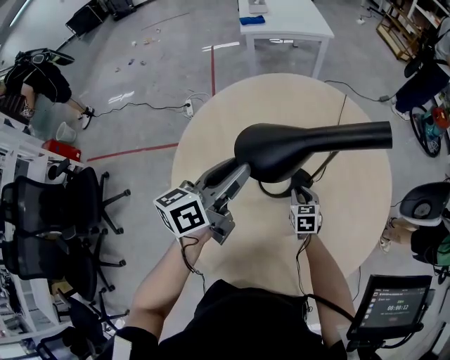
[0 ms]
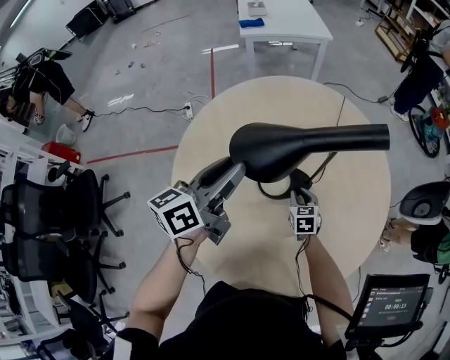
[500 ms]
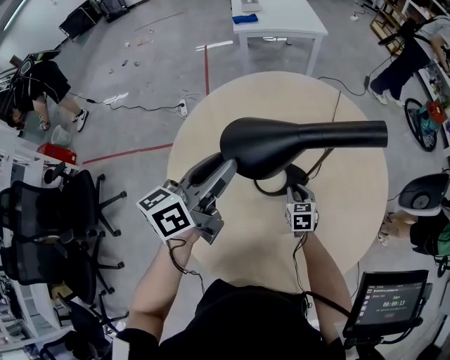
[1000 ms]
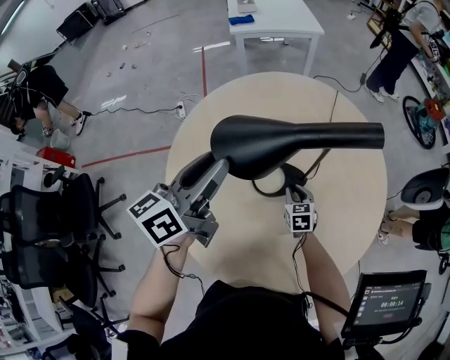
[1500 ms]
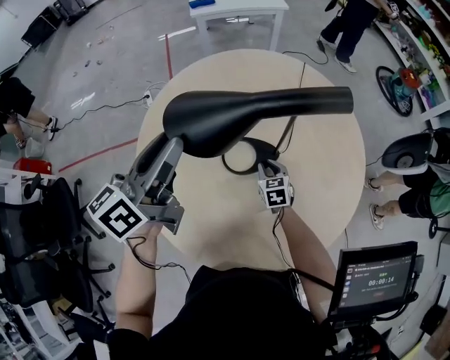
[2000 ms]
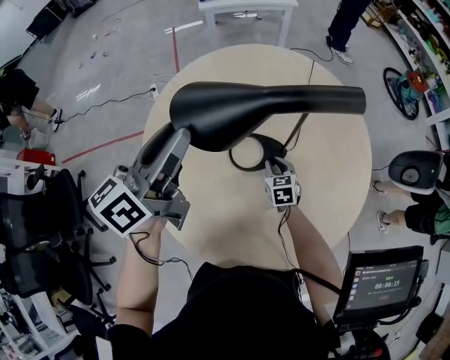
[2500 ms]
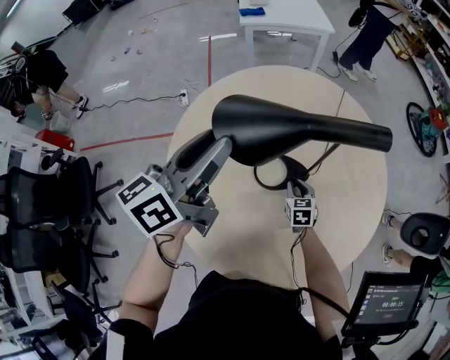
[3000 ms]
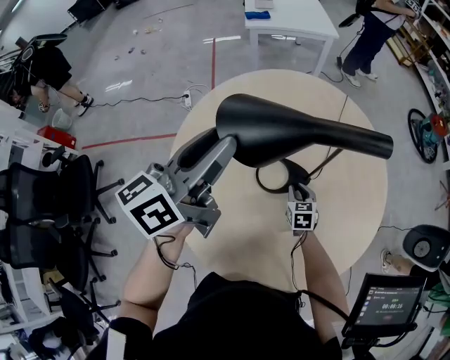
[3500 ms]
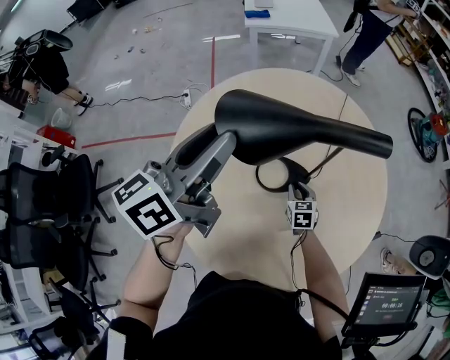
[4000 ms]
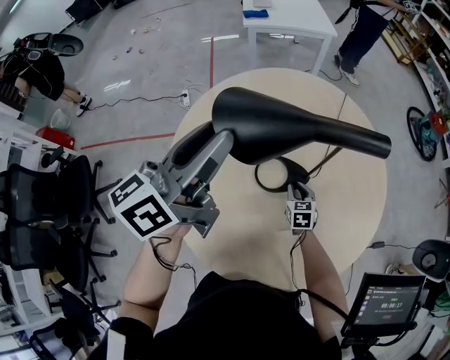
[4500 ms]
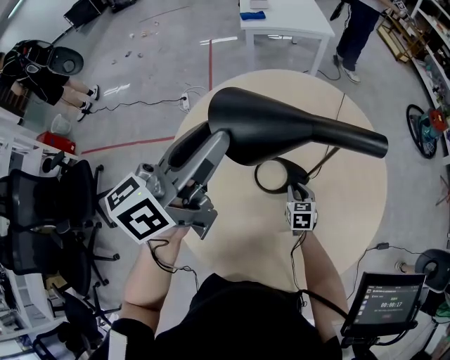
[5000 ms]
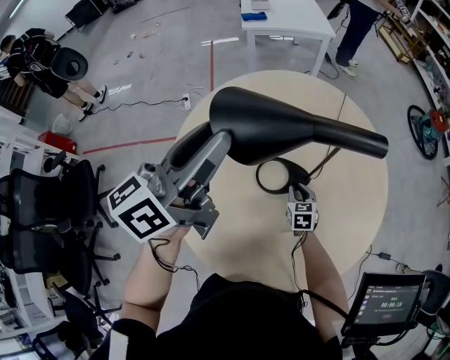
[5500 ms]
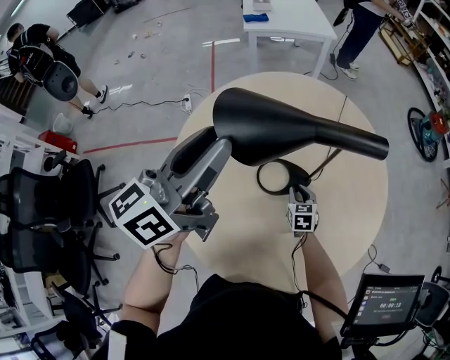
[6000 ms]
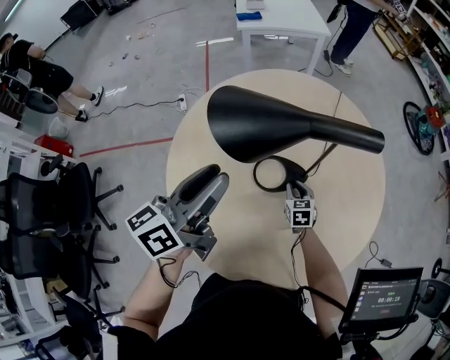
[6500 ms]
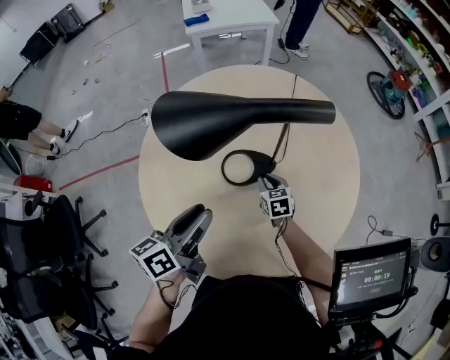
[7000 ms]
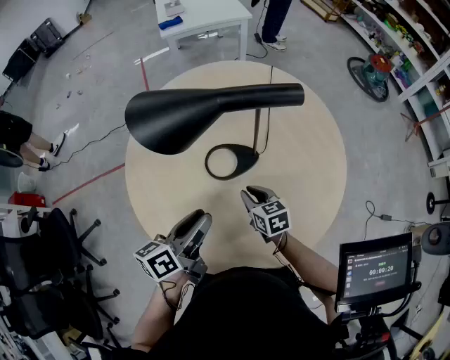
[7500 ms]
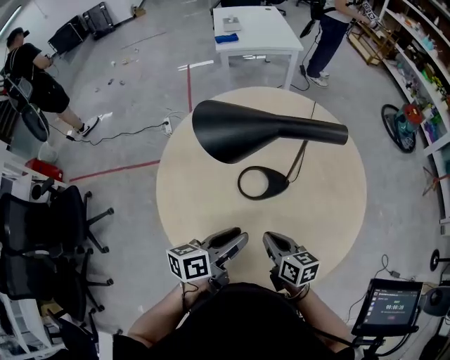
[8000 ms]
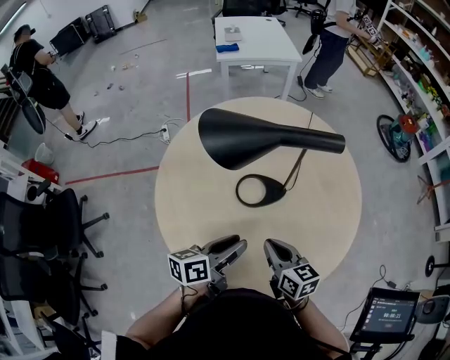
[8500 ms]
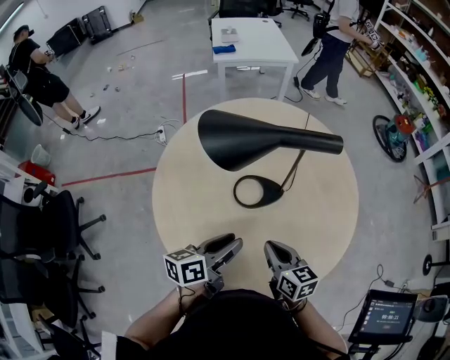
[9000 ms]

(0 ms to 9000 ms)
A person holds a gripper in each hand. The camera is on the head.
0 ms - 2000 ms: The left gripper is displaced upward by roughly 5 cm.
2000 ms - 4500 ms: The left gripper is displaced upward by roughly 5 cm.
4500 ms - 7000 ms: The left gripper shifts roughly 20 cm downward and backward, and changes its angle by roughly 20 degrees.
7000 ms - 9000 ms: The left gripper shifts roughly 5 cm to the right, while the right gripper heads backward and upward, covering roughly 20 cm, and changes its angle by some 30 degrees.

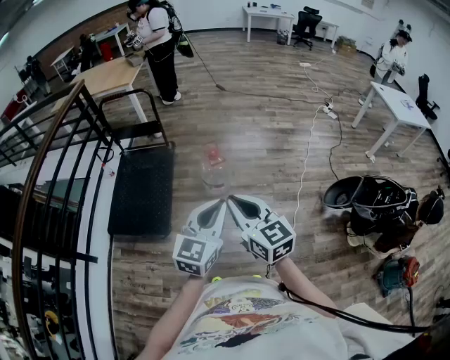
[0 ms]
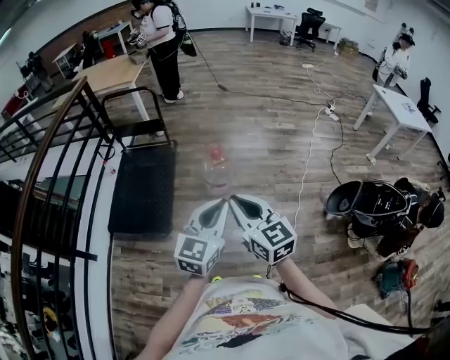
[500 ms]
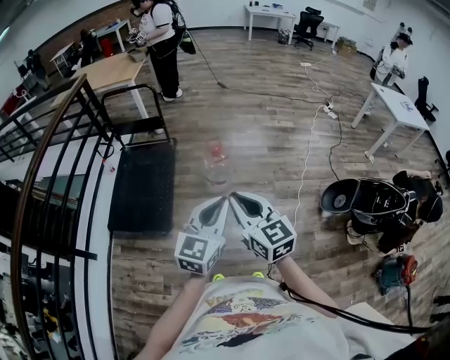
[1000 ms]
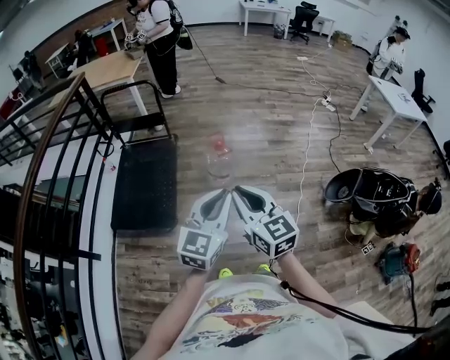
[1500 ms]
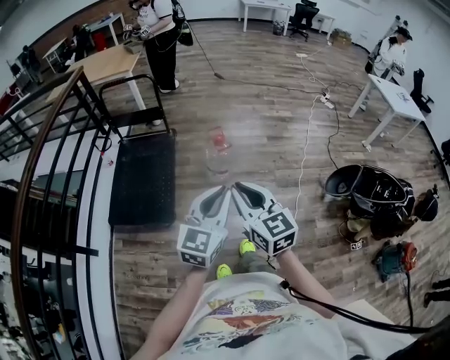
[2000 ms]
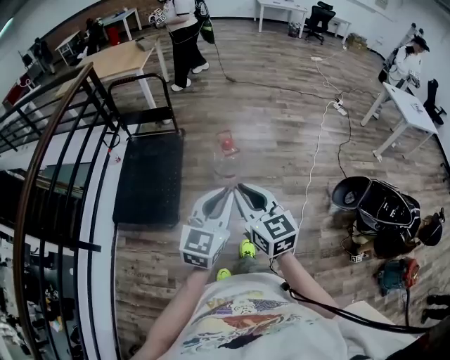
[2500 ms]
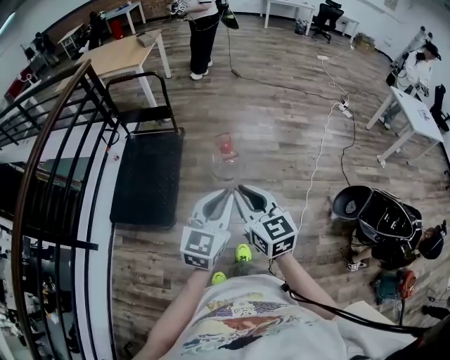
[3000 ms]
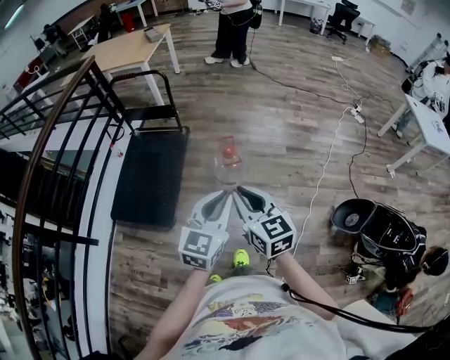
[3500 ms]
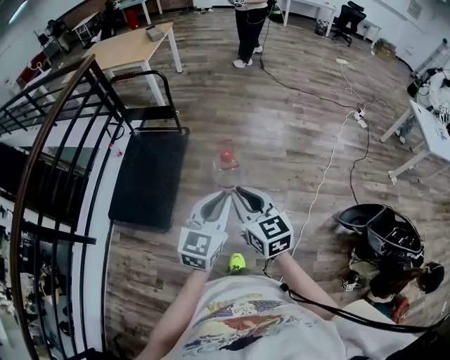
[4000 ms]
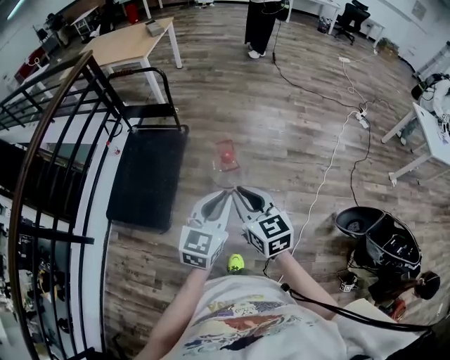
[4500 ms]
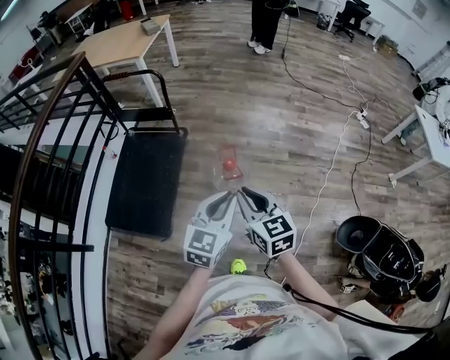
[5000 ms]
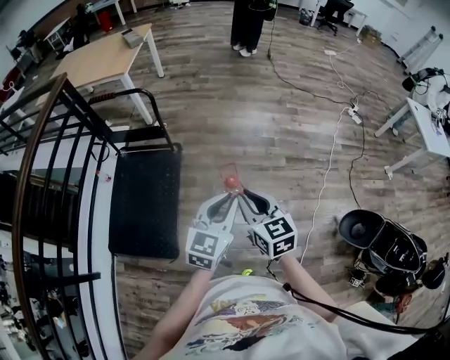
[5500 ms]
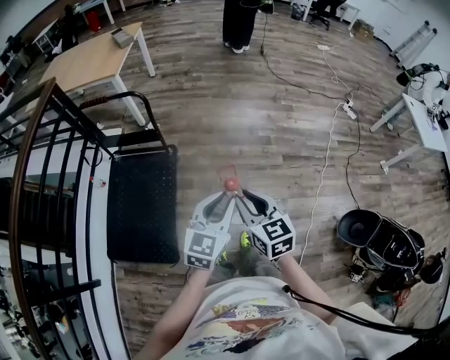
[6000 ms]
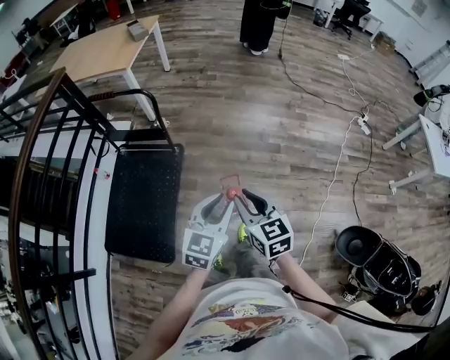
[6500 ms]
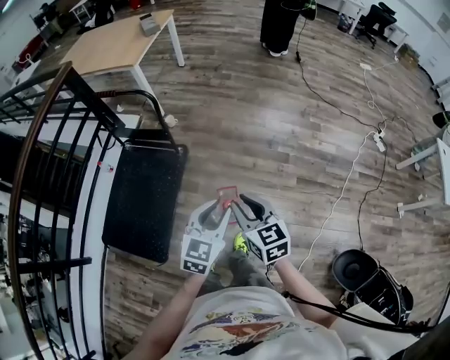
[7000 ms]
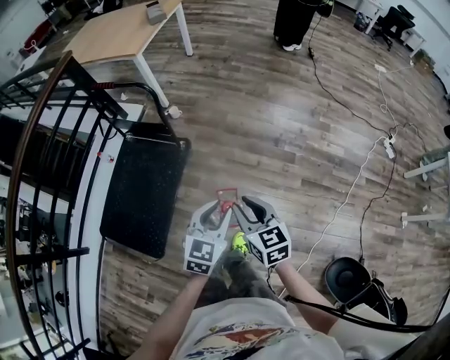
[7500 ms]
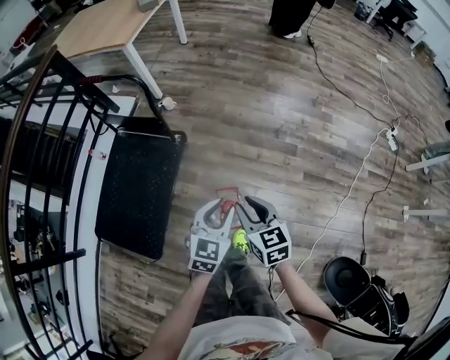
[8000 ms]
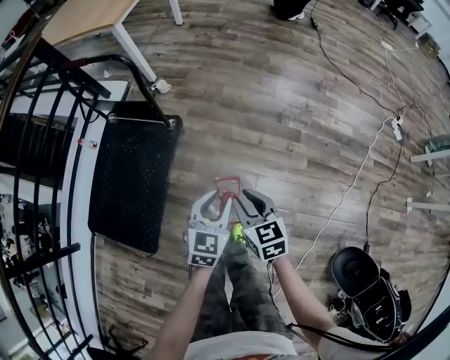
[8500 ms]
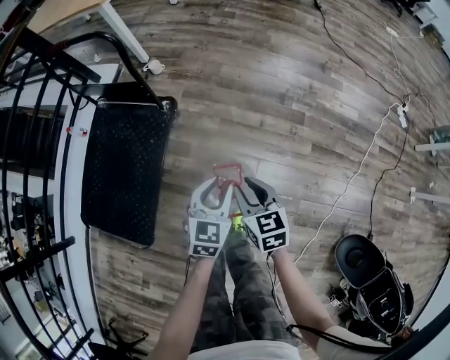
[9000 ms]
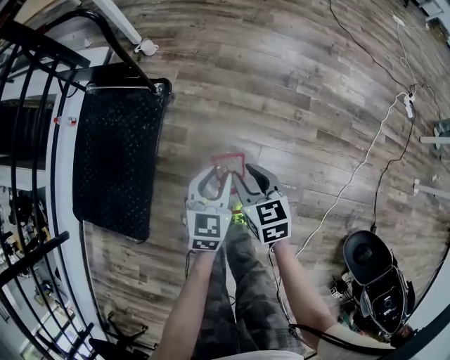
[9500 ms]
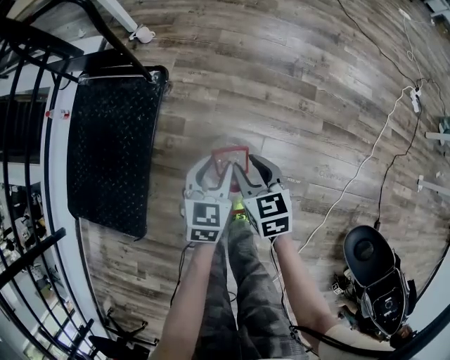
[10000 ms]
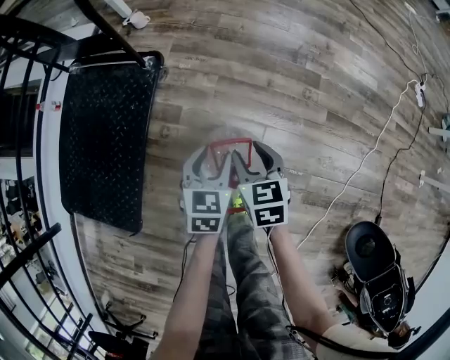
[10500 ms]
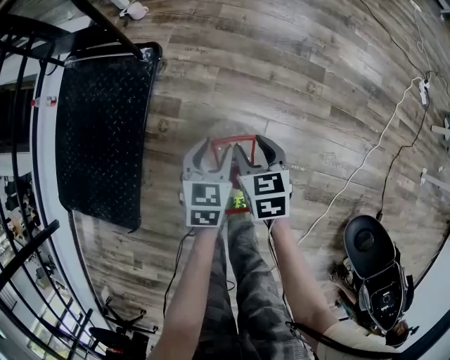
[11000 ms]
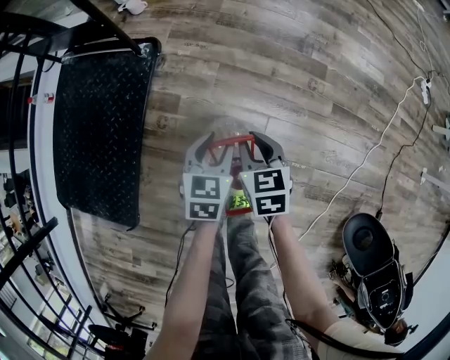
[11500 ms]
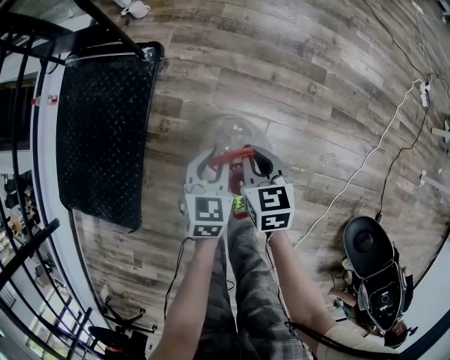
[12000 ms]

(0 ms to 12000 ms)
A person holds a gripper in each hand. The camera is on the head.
0 ms - 2000 ms: The two grippers go about 10 cm to the left.
2000 ms - 4000 ms: Both grippers travel together forward and to the right, some 25 cm.
4000 ms - 6000 ms: Both grippers travel together forward, approximately 25 cm.
6000 ms - 8000 ms: The grippers both shift forward and downward by approximately 30 cm. The left gripper rotates roughly 20 degrees.
8000 ms - 10000 ms: Both grippers travel together downward, roughly 30 cm.
10000 ms - 12000 ms: The grippers both shift downward by some 10 cm. The right gripper closes up.

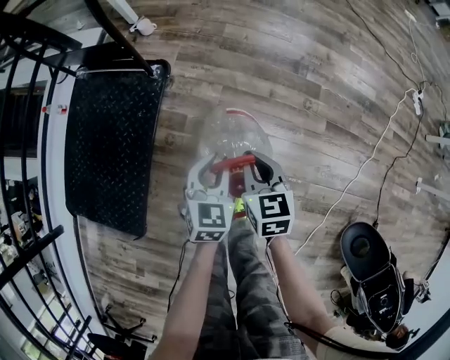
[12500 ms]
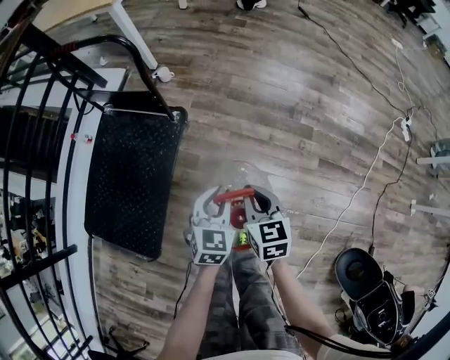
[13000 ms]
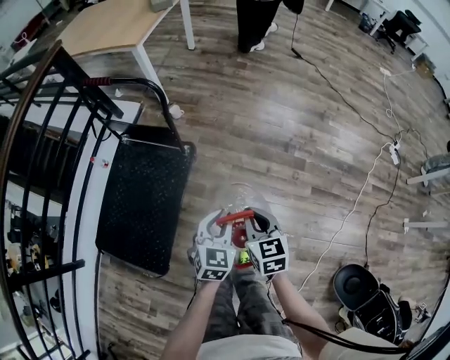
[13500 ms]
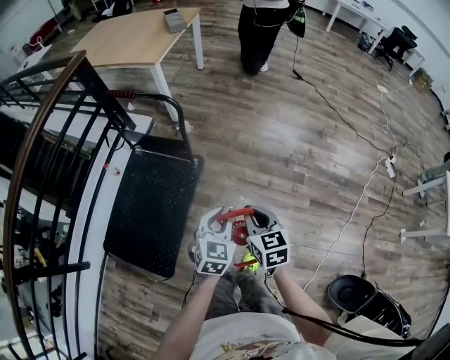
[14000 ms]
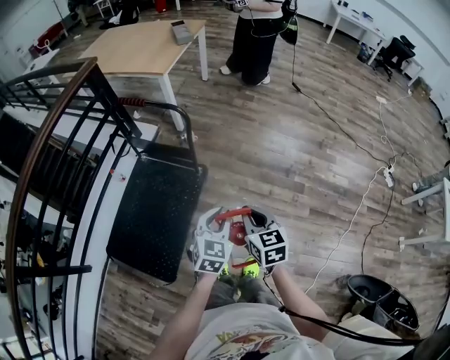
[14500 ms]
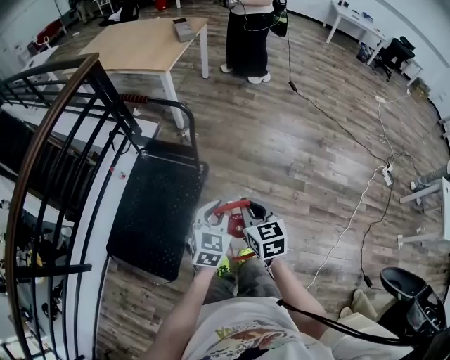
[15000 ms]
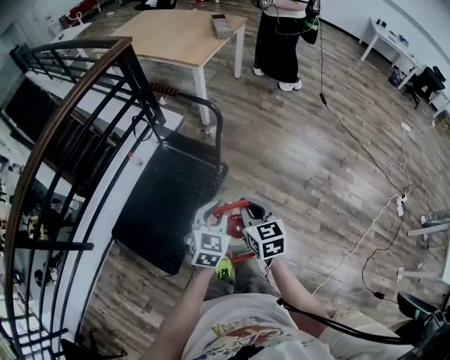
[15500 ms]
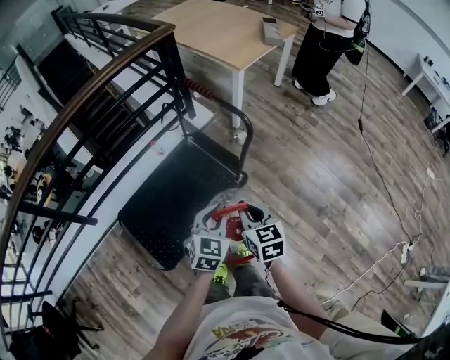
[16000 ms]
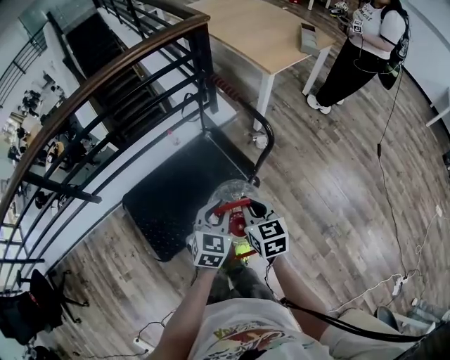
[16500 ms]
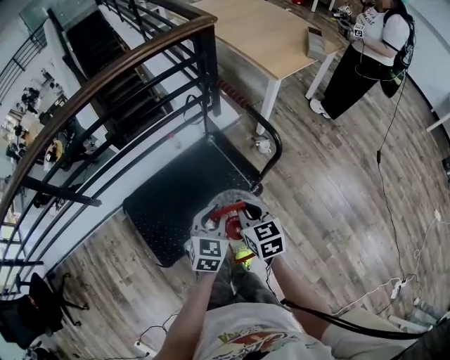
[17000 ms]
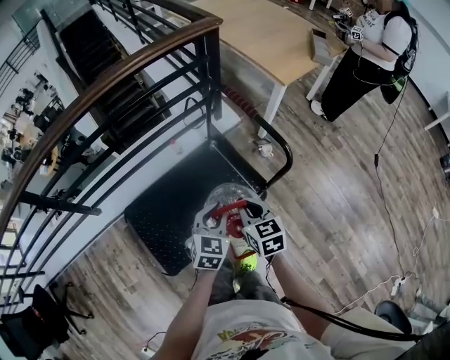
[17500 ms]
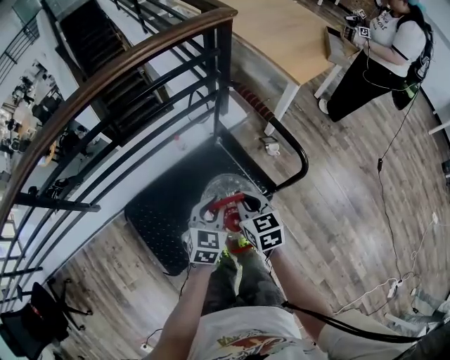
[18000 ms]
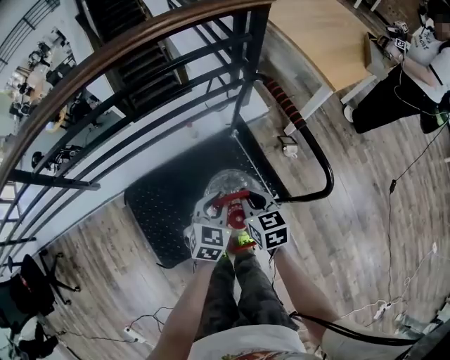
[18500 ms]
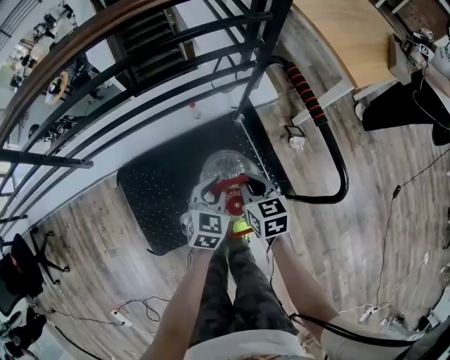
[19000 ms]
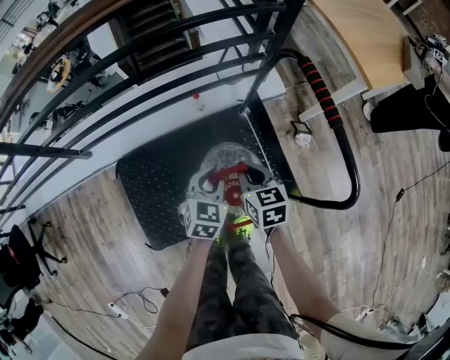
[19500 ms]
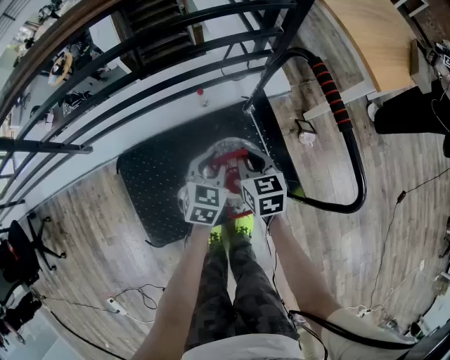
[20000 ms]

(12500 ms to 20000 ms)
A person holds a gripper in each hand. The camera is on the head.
12500 ms - 14500 ms: The grippers both shift upward by roughly 40 cm.
14500 ms - 16500 ms: The right gripper ends up about 25 cm from where it was, and swivels roughly 40 degrees. The left gripper changes place by roughly 20 cm, and rotates some 40 degrees.
16500 ms - 18000 ms: The two grippers go roughly 25 cm forward and to the left.
18000 ms - 20000 ms: Both grippers travel together forward and downward, approximately 25 cm.
